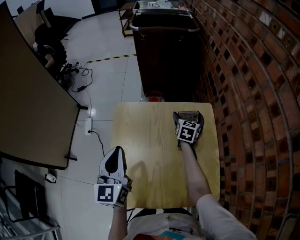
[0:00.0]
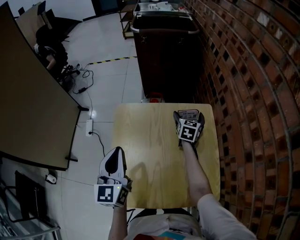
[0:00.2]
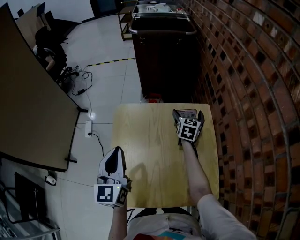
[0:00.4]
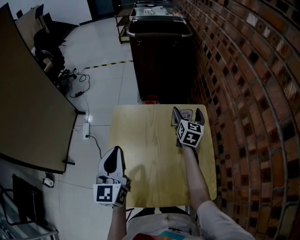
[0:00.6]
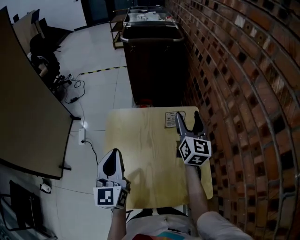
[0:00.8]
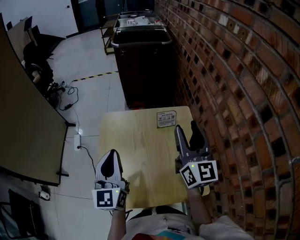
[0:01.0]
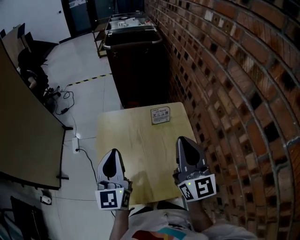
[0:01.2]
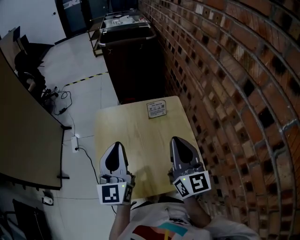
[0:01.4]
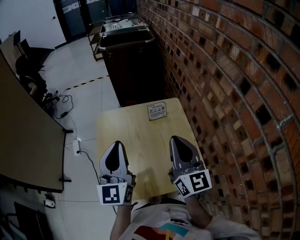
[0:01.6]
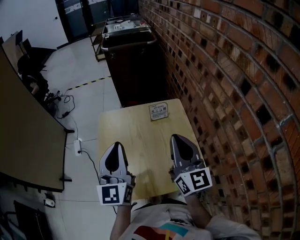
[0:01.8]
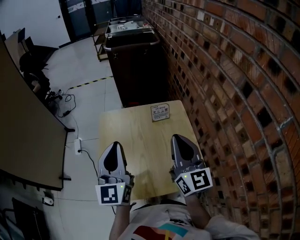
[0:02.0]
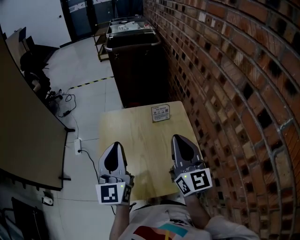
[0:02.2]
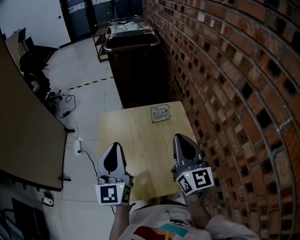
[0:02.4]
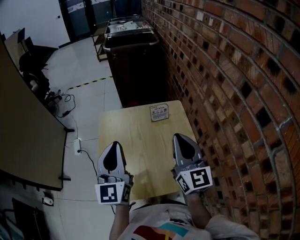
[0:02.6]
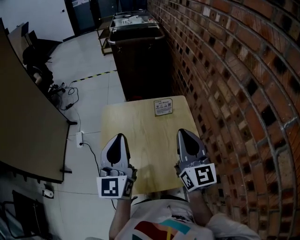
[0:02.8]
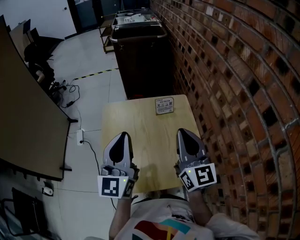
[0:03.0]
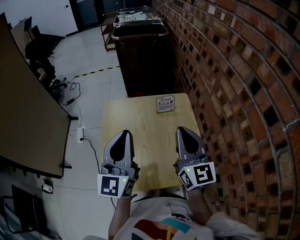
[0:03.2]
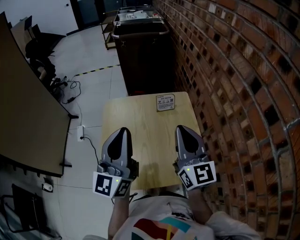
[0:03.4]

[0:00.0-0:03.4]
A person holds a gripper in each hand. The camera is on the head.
0:00.0 to 0:01.6: The left gripper shifts approximately 15 cm upward, to the right and backward. The right gripper moves backward and upward, approximately 40 cm, points its fingers some 40 degrees further upward, and closes its fingers.
0:01.6 to 0:03.4: There are only small adjustments of the grippers.

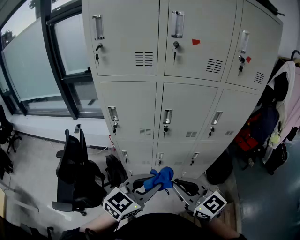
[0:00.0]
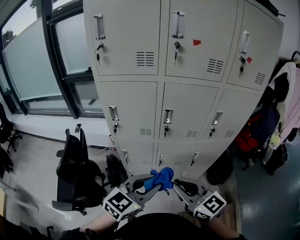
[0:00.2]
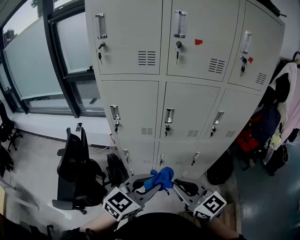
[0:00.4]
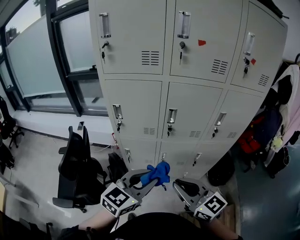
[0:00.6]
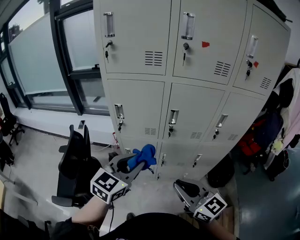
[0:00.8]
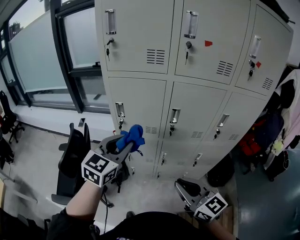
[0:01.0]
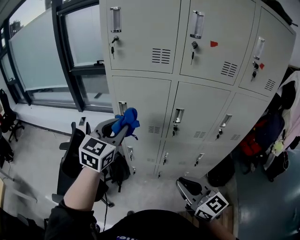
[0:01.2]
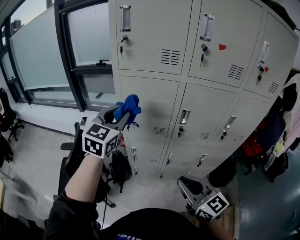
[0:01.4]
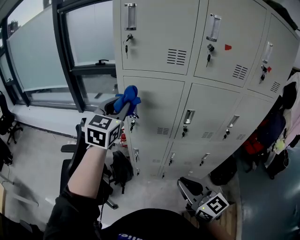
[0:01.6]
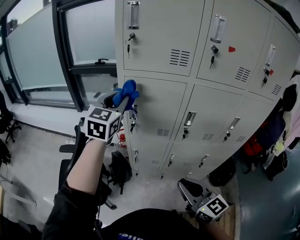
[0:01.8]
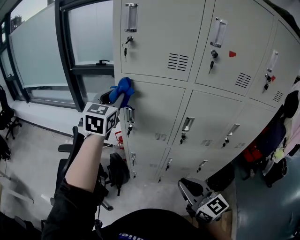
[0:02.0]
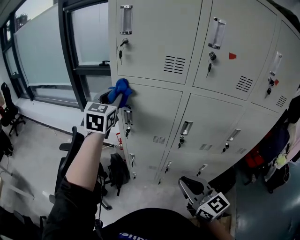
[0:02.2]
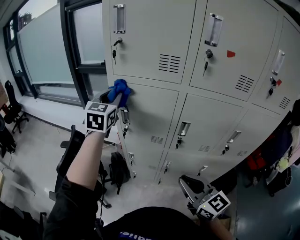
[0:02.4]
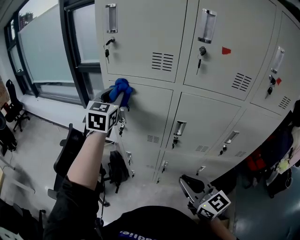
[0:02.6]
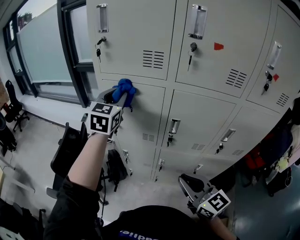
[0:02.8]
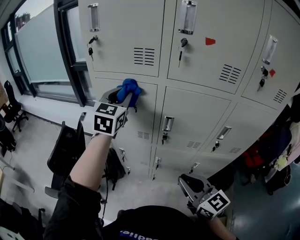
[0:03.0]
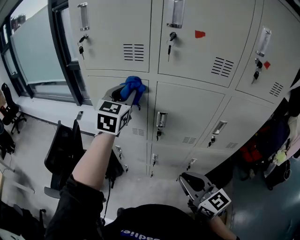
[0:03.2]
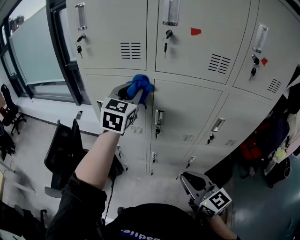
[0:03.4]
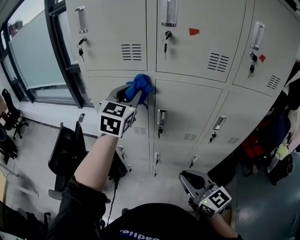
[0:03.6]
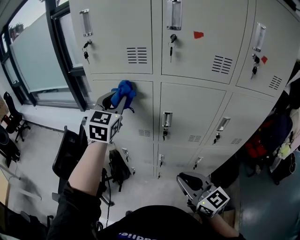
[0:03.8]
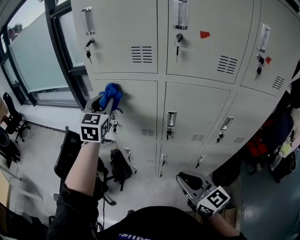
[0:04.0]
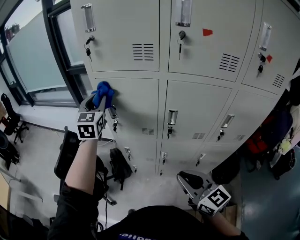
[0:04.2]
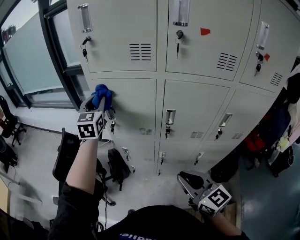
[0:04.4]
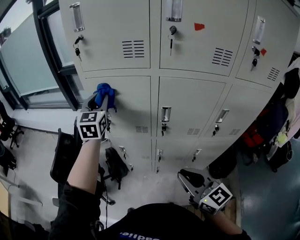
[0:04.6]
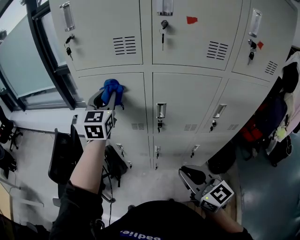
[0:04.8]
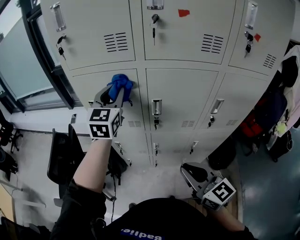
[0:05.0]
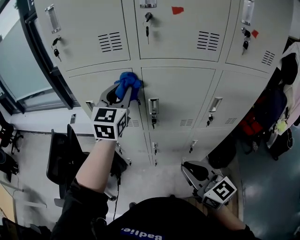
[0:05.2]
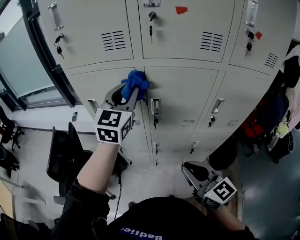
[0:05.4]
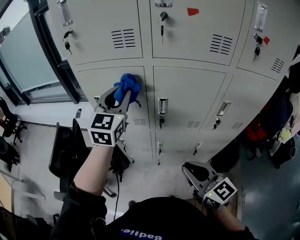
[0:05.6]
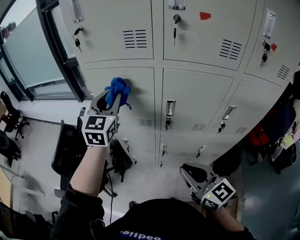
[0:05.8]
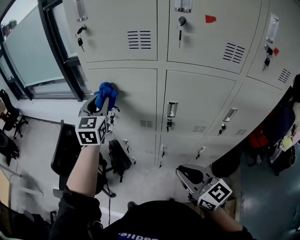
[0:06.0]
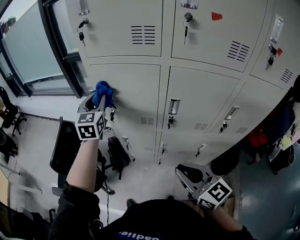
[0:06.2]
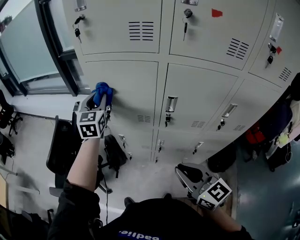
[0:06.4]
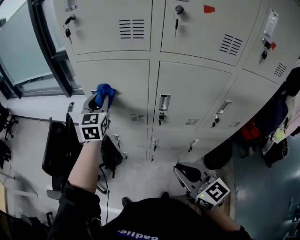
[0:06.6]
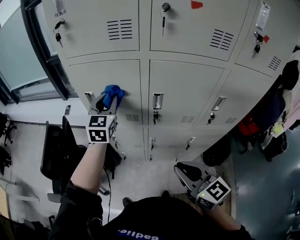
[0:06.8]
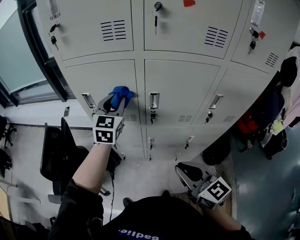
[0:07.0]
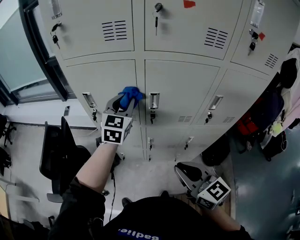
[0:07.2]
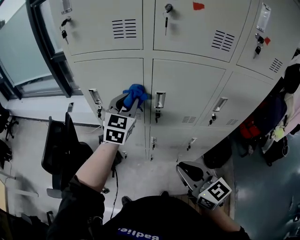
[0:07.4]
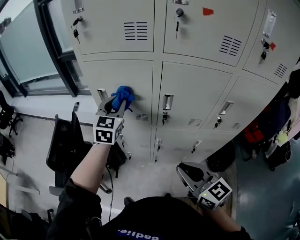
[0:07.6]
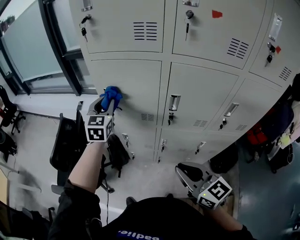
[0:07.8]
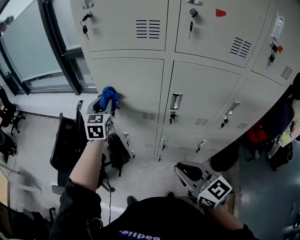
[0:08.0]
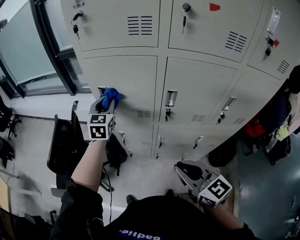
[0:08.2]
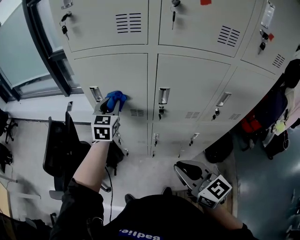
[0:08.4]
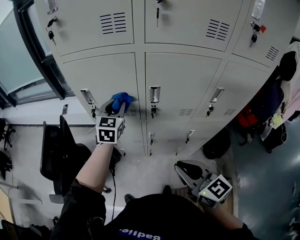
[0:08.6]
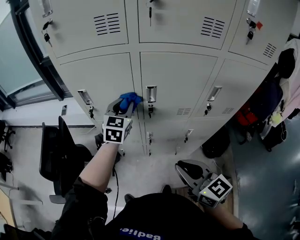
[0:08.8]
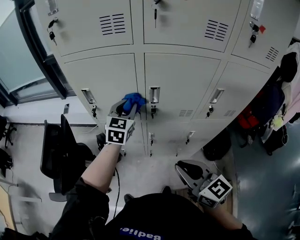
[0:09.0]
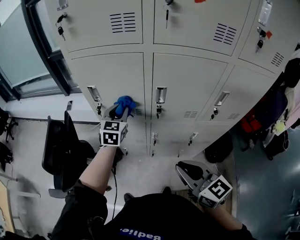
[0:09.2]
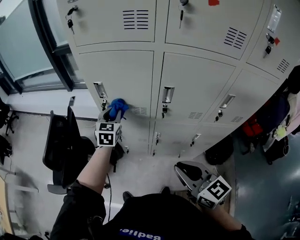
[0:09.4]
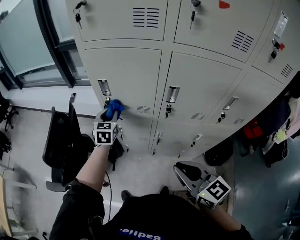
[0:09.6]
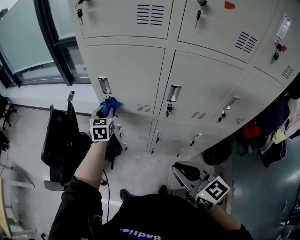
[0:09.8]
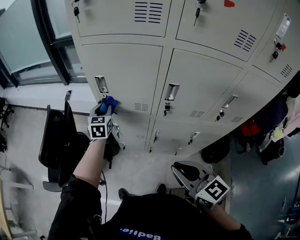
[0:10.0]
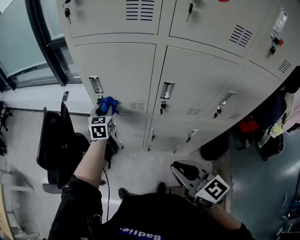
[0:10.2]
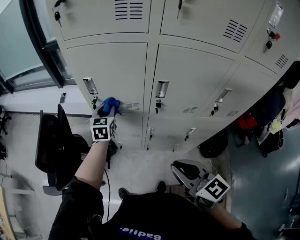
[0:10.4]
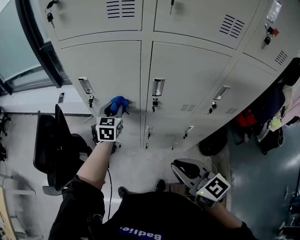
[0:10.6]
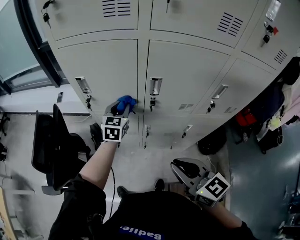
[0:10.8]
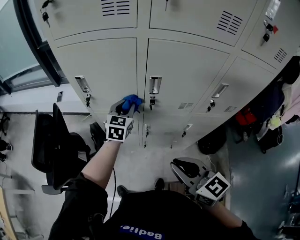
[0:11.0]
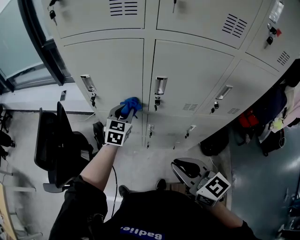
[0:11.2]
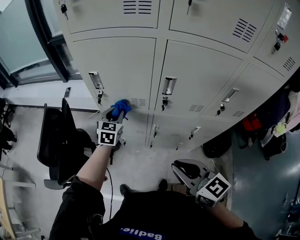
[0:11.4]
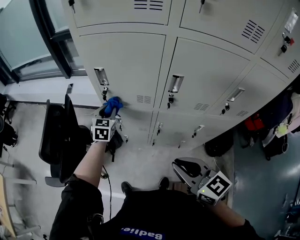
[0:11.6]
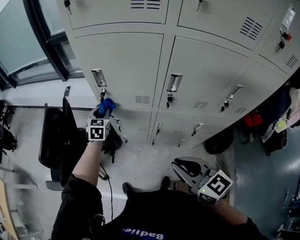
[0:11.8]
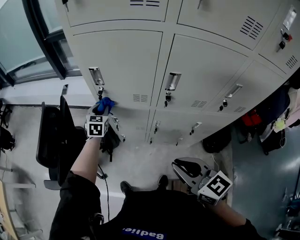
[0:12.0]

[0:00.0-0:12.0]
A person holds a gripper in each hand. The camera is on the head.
0:00.0 to 0:01.6: The left gripper is displaced forward, to the left and upward by some 35 cm, and swivels roughly 40 degrees. The right gripper shifts roughly 5 cm to the left.
0:01.6 to 0:03.0: The grippers both shift to the right by approximately 15 cm.
0:03.0 to 0:04.4: The left gripper goes roughly 10 cm to the left.
0:04.4 to 0:06.0: The left gripper reaches approximately 20 cm to the right, then returns.
0:06.0 to 0:07.6: The left gripper heads to the right and downward, covering about 10 cm.
0:07.6 to 0:09.0: The left gripper shifts approximately 10 cm to the right and downward.
0:09.0 to 0:10.4: The left gripper is displaced to the left, downward and forward by some 15 cm.
0:10.4 to 0:12.0: The left gripper moves to the left and downward, some 10 cm.

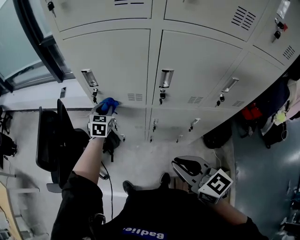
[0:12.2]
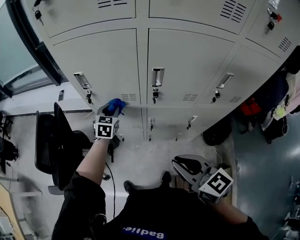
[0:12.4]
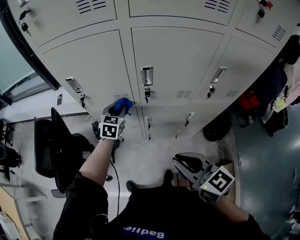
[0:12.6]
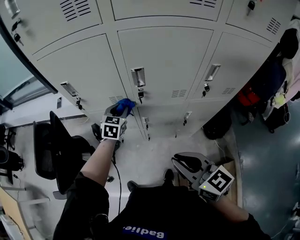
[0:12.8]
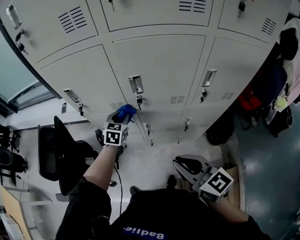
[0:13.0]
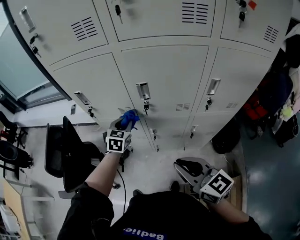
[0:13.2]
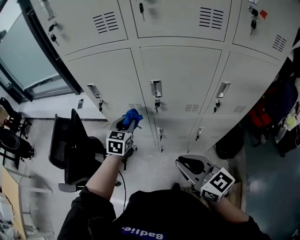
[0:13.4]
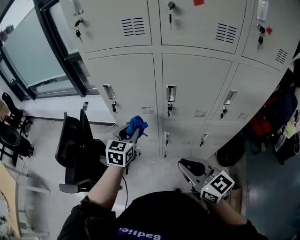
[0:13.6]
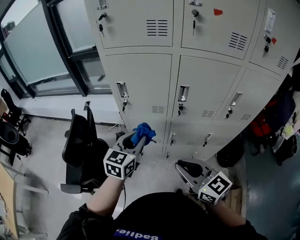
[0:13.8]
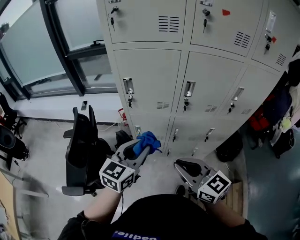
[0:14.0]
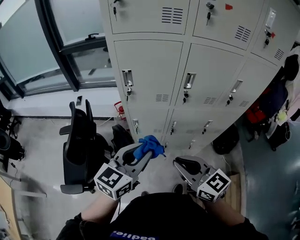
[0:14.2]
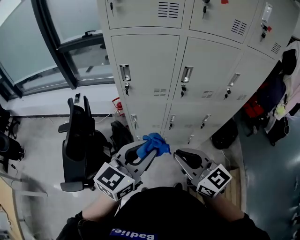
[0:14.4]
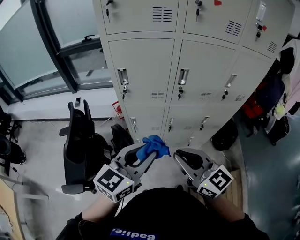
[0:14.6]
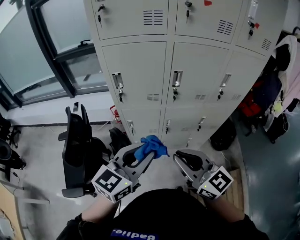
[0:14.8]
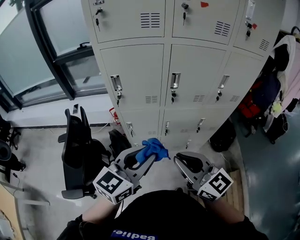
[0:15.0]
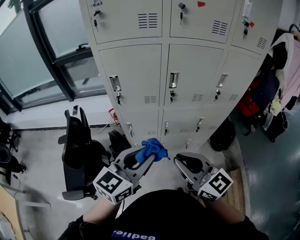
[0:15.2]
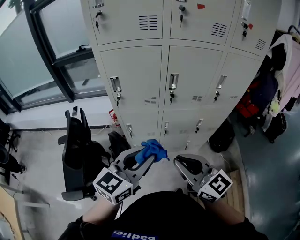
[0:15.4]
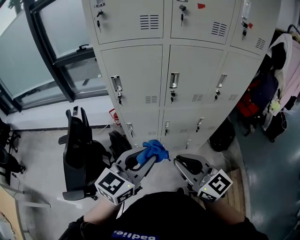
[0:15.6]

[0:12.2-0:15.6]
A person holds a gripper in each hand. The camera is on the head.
0:12.2 to 0:13.8: The right gripper ends up roughly 5 cm from where it was. Meanwhile the left gripper travels backward and upward by about 25 cm, and changes its angle by some 20 degrees.
0:13.8 to 0:15.6: The left gripper shifts about 15 cm backward, and turns by roughly 20 degrees. The right gripper travels backward by approximately 5 cm.

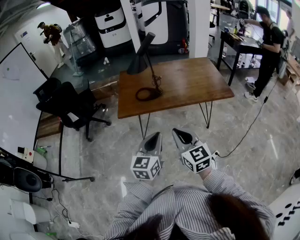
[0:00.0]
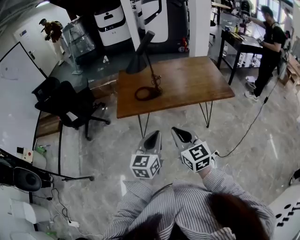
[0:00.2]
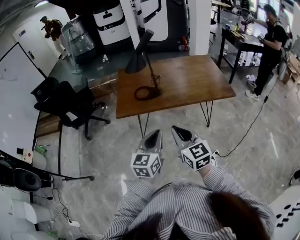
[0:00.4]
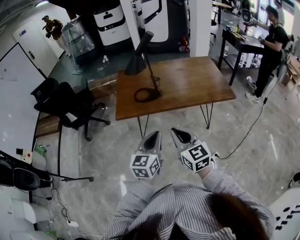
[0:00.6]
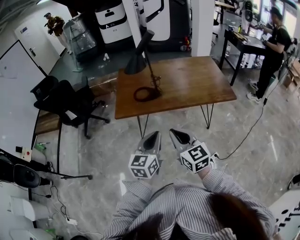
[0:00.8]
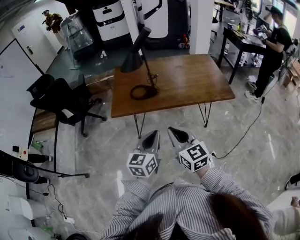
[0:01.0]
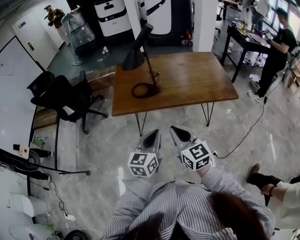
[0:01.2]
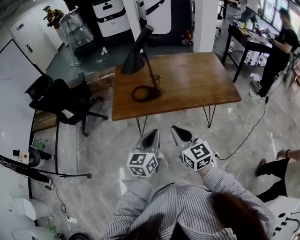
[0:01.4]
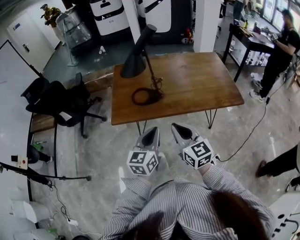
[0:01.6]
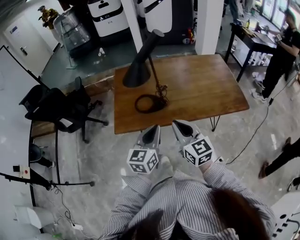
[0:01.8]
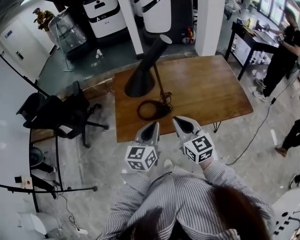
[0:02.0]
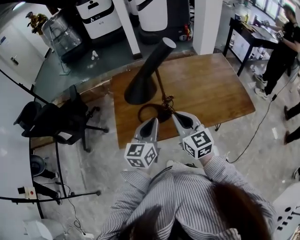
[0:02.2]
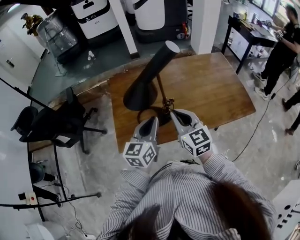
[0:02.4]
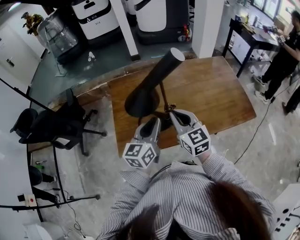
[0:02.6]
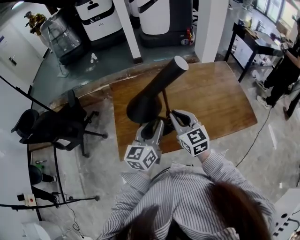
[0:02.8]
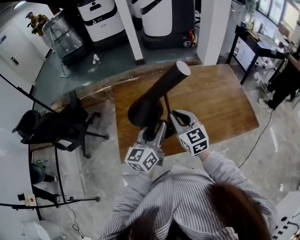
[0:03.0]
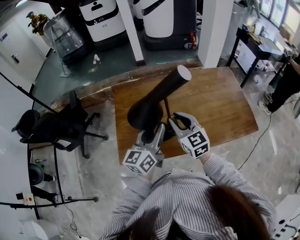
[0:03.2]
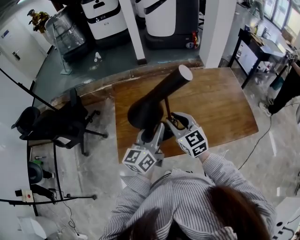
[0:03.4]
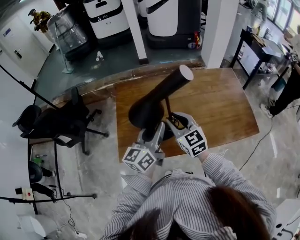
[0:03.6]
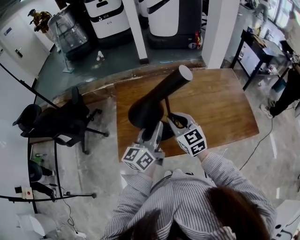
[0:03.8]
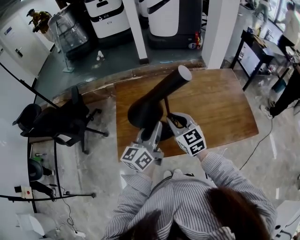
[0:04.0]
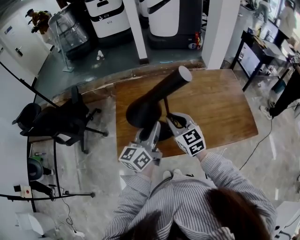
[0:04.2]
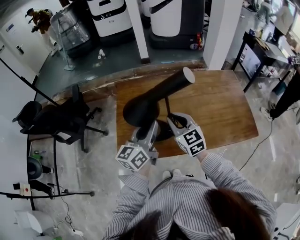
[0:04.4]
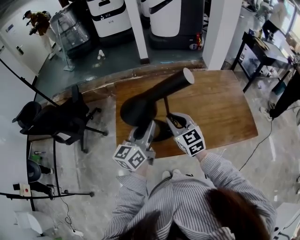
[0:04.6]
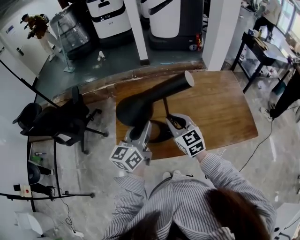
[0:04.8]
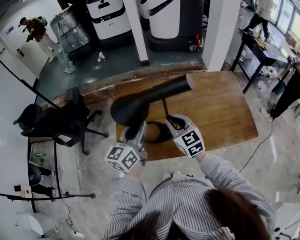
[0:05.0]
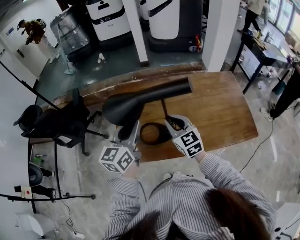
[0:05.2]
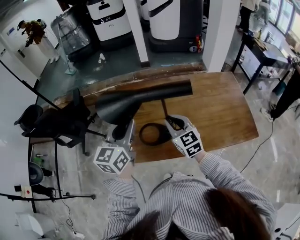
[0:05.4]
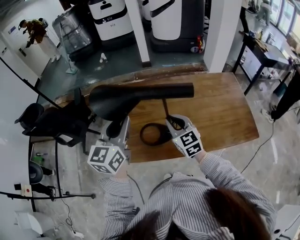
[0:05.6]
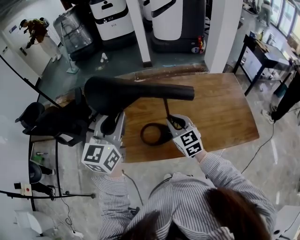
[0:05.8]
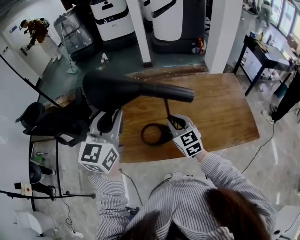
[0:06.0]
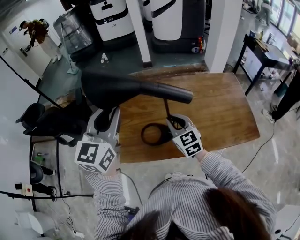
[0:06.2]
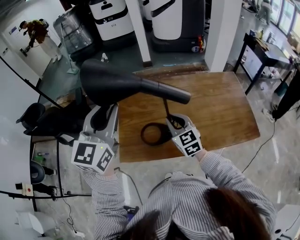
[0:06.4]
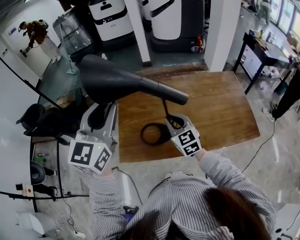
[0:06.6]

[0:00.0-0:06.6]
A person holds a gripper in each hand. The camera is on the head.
0:00.0 to 0:01.6: Both grippers move forward, roughly 15 cm.
0:01.6 to 0:03.2: The grippers both shift forward by about 30 cm. The left gripper opens.
0:03.2 to 0:05.0: The left gripper moves to the left, about 5 cm.
0:05.0 to 0:06.6: The left gripper moves upward, approximately 20 cm, and swivels roughly 30 degrees.
